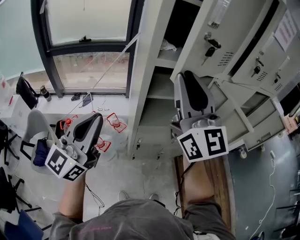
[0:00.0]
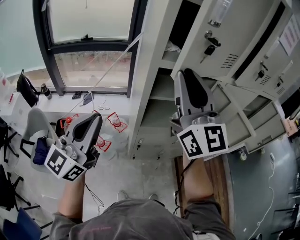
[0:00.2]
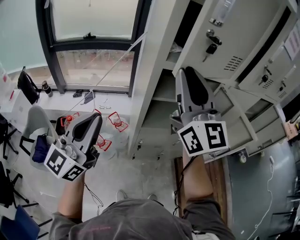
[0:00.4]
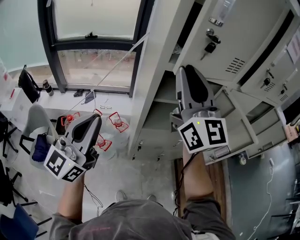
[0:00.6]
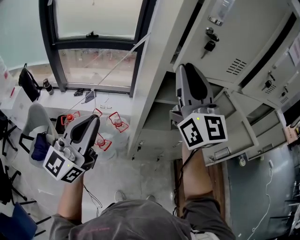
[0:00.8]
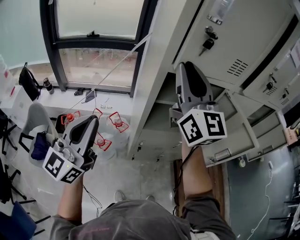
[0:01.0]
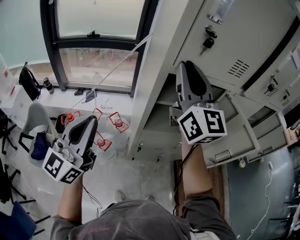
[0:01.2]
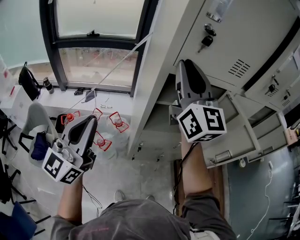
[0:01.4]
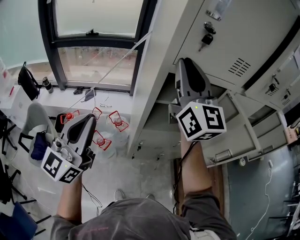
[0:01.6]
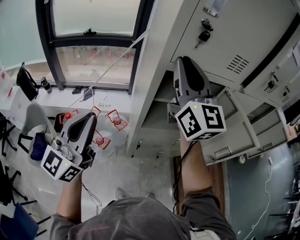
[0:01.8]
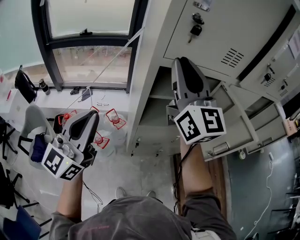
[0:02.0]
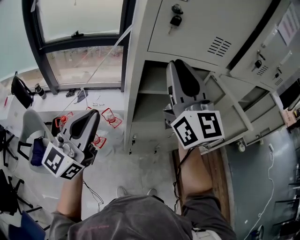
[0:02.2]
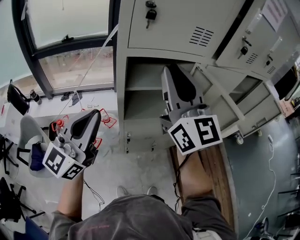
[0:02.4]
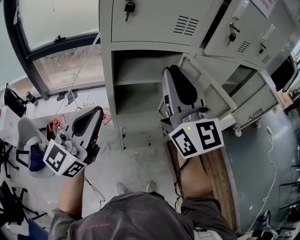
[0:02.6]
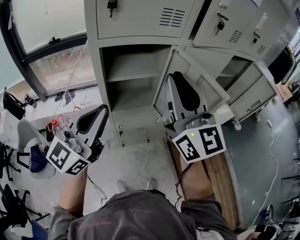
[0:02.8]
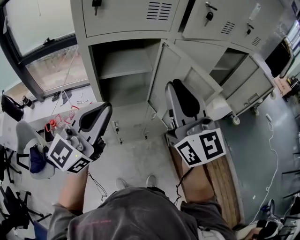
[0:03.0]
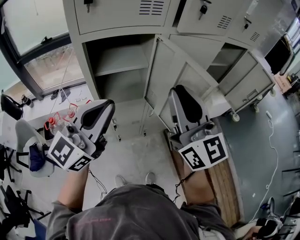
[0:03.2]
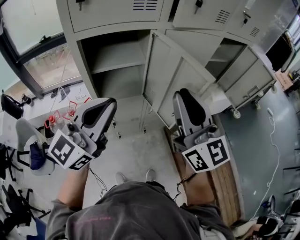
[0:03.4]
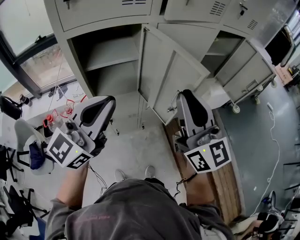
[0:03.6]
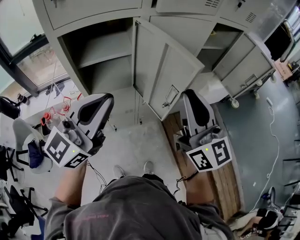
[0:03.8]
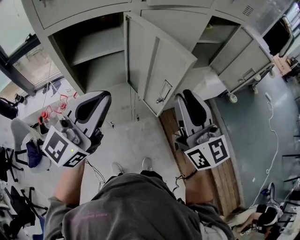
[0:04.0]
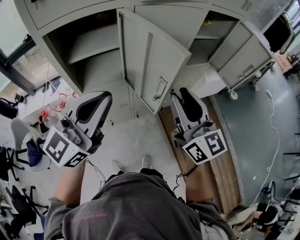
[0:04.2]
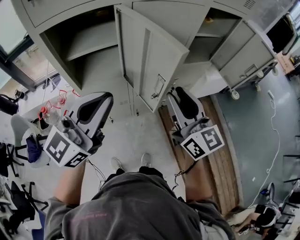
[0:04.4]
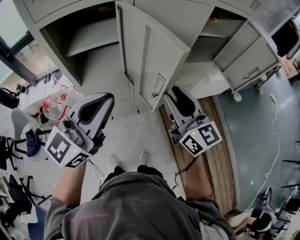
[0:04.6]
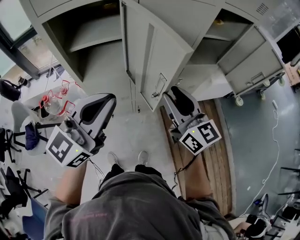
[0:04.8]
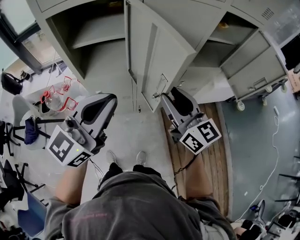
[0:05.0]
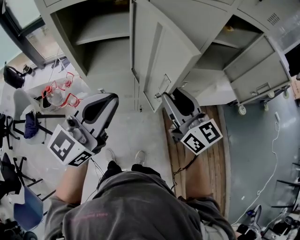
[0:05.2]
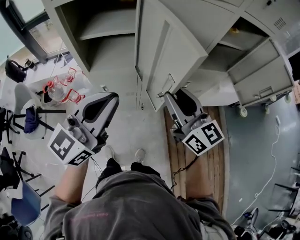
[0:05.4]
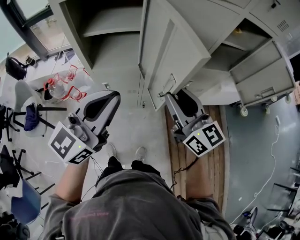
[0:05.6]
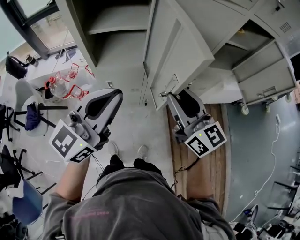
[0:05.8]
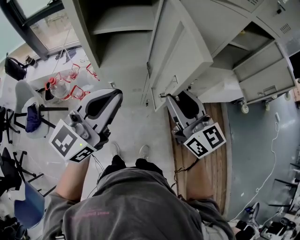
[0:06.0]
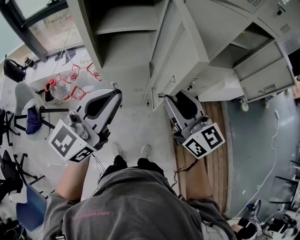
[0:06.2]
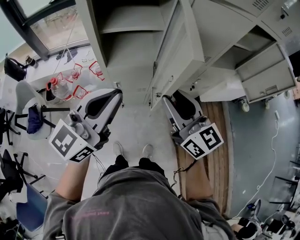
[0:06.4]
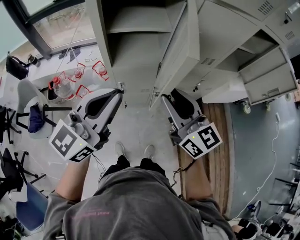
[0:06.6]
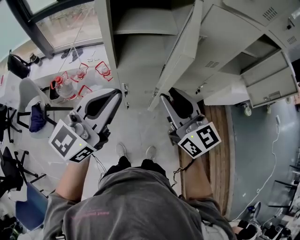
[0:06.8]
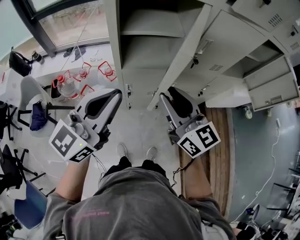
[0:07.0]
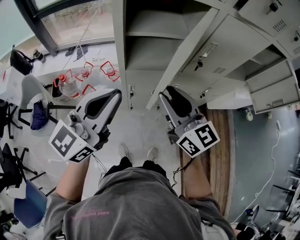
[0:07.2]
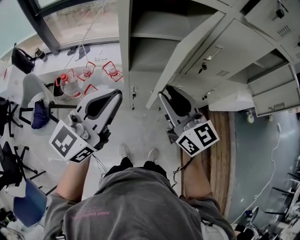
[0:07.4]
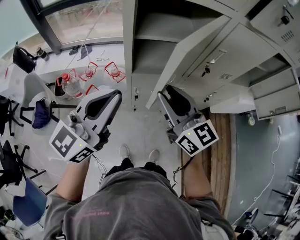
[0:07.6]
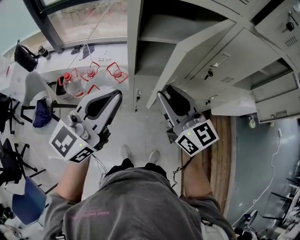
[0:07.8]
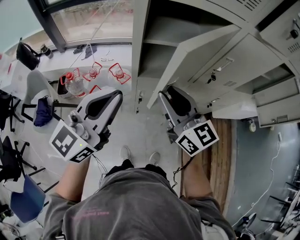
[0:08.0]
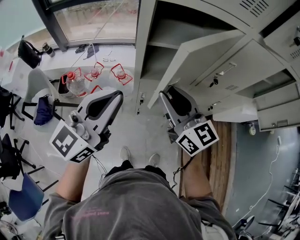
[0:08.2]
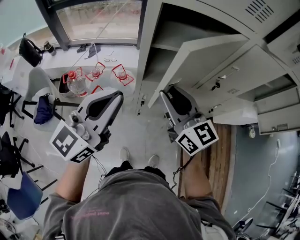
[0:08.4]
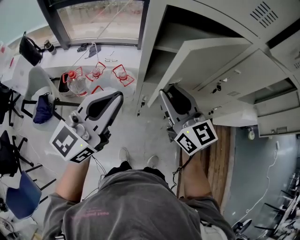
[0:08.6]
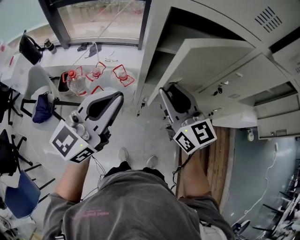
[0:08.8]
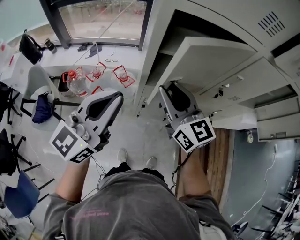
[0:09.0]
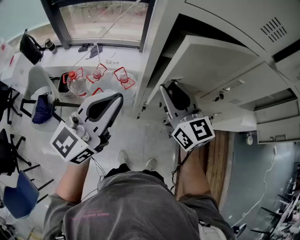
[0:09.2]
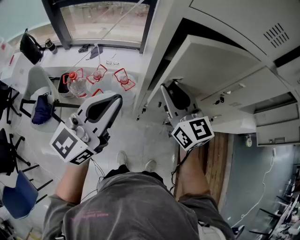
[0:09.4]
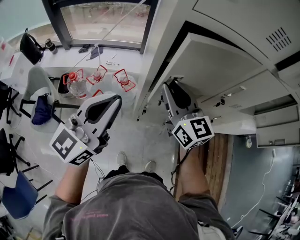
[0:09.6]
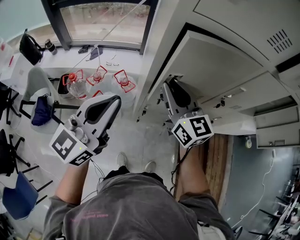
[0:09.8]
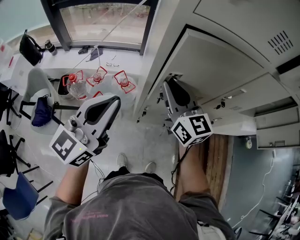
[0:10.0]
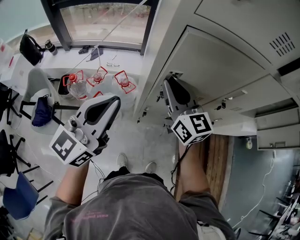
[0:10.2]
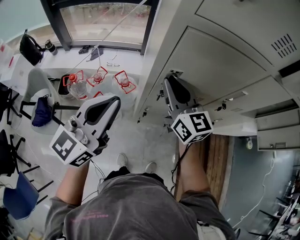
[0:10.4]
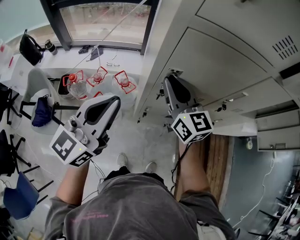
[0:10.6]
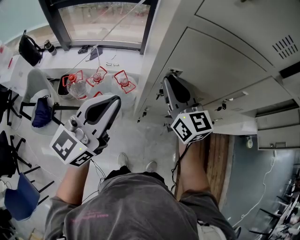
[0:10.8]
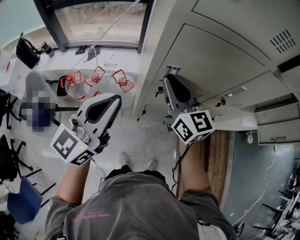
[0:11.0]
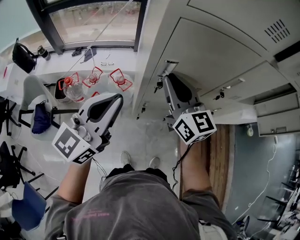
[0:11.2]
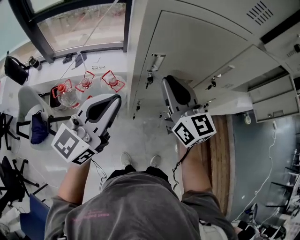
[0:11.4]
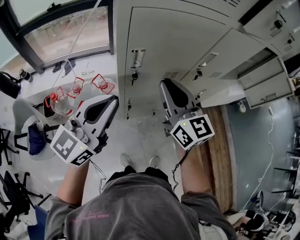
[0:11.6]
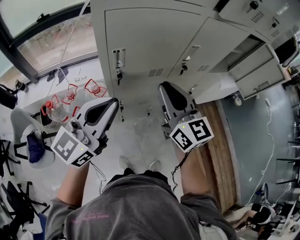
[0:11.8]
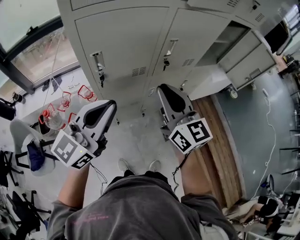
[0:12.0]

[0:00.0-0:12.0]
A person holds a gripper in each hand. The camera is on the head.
0:00.0 to 0:01.6: The right gripper shifts approximately 10 cm forward; the left gripper changes place by some 5 cm.
0:01.6 to 0:03.0: The right gripper heads to the right and backward, covering approximately 25 cm, while the left gripper travels to the right by some 25 cm, and swivels some 20 degrees.
0:03.0 to 0:04.4: The left gripper travels to the right by approximately 15 cm. Meanwhile the right gripper is displaced to the right and downward by about 20 cm.
0:04.4 to 0:06.0: Both grippers travel together to the left, roughly 5 cm.
0:06.0 to 0:07.6: The two grippers go approximately 20 cm to the left.
0:07.6 to 0:09.0: The left gripper travels to the left by roughly 5 cm. Meanwhile the right gripper travels forward and to the left by some 10 cm.
0:09.0 to 0:10.4: The right gripper moves forward, about 10 cm.
0:10.4 to 0:12.0: The left gripper is displaced to the right by some 20 cm, and swivels roughly 20 degrees; the right gripper goes approximately 25 cm to the right and backward, and changes its angle by roughly 20 degrees.

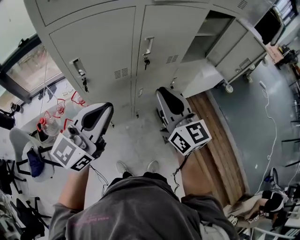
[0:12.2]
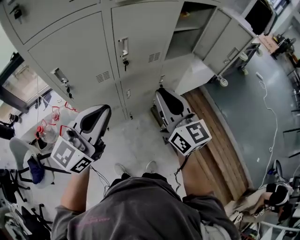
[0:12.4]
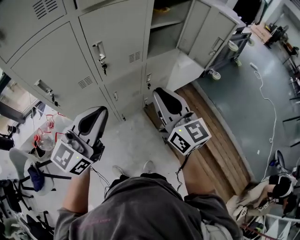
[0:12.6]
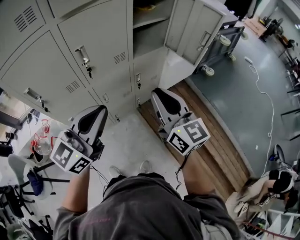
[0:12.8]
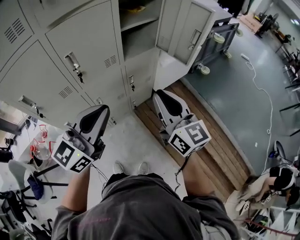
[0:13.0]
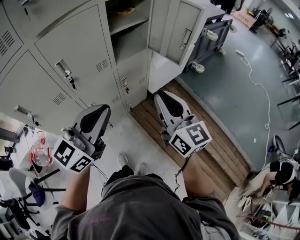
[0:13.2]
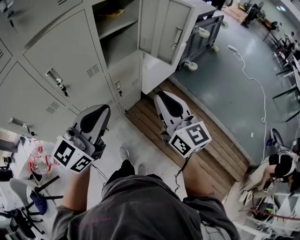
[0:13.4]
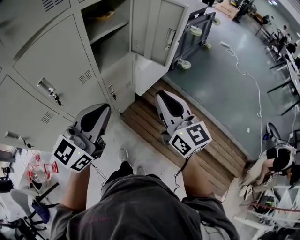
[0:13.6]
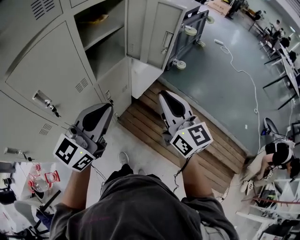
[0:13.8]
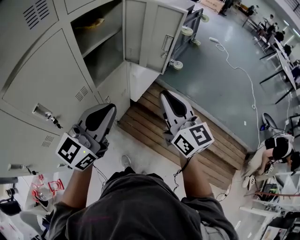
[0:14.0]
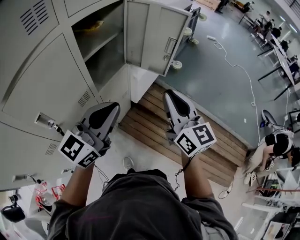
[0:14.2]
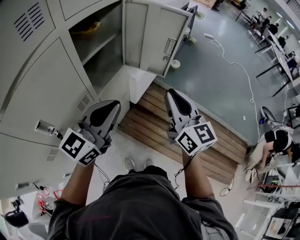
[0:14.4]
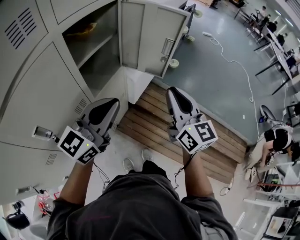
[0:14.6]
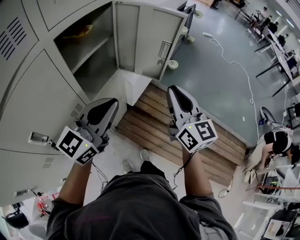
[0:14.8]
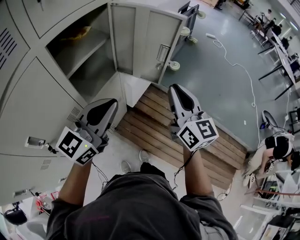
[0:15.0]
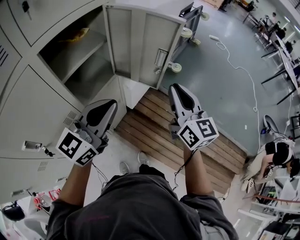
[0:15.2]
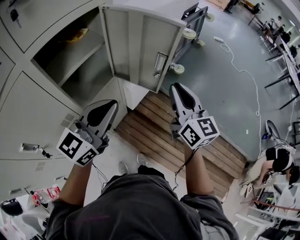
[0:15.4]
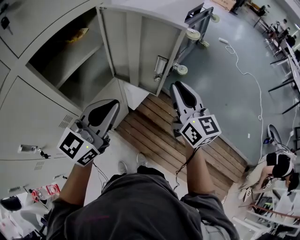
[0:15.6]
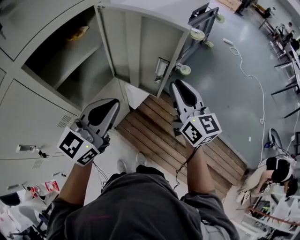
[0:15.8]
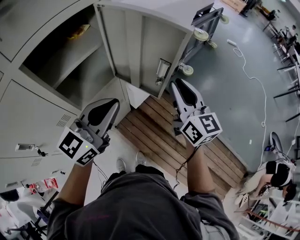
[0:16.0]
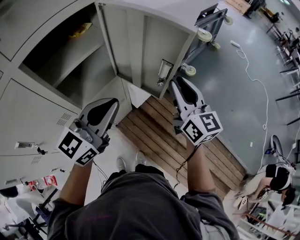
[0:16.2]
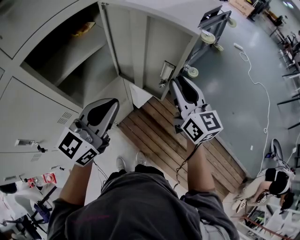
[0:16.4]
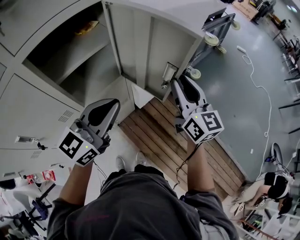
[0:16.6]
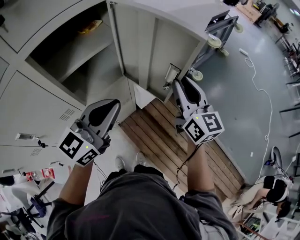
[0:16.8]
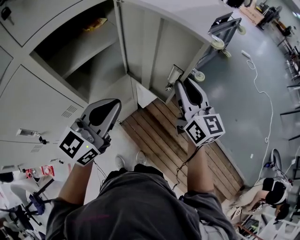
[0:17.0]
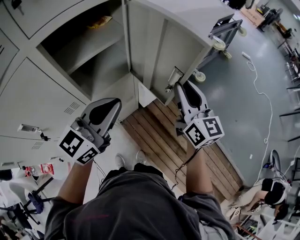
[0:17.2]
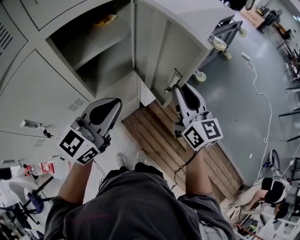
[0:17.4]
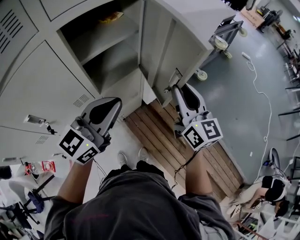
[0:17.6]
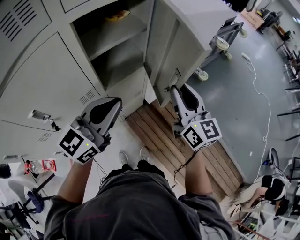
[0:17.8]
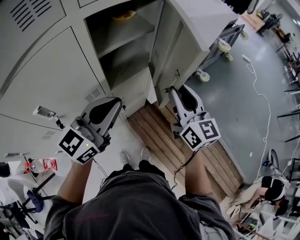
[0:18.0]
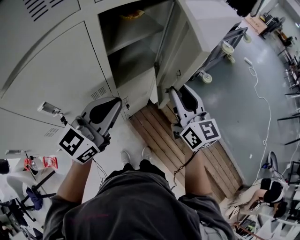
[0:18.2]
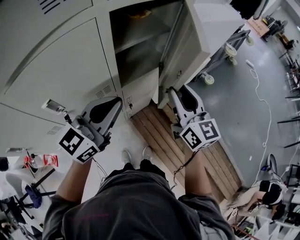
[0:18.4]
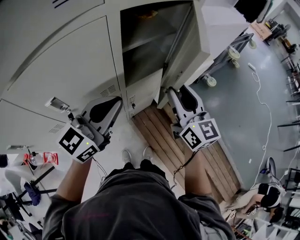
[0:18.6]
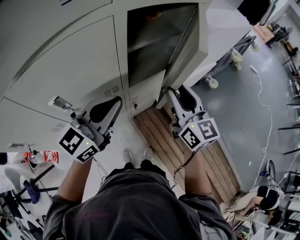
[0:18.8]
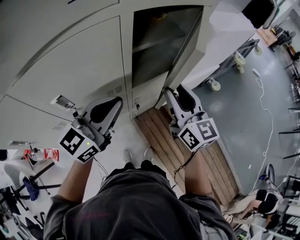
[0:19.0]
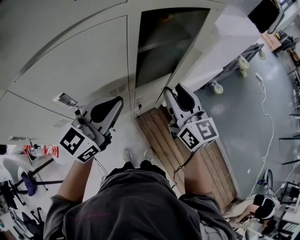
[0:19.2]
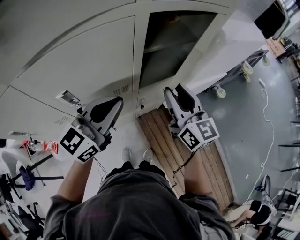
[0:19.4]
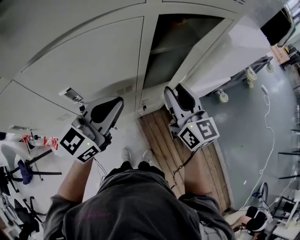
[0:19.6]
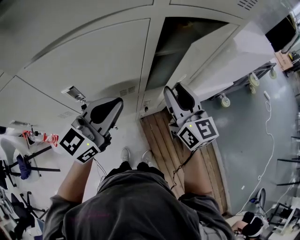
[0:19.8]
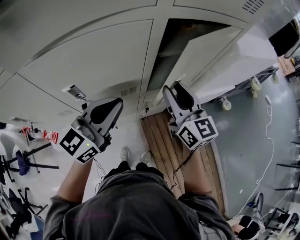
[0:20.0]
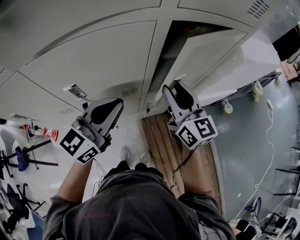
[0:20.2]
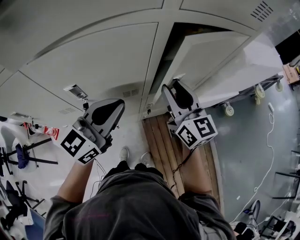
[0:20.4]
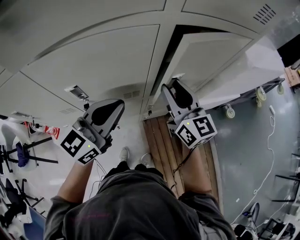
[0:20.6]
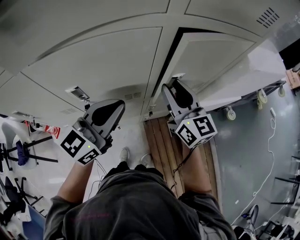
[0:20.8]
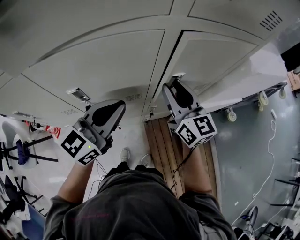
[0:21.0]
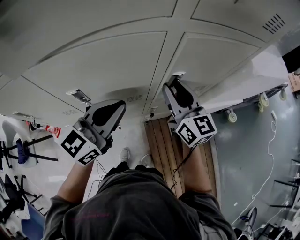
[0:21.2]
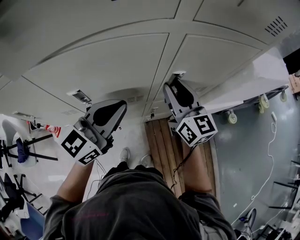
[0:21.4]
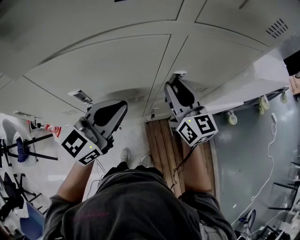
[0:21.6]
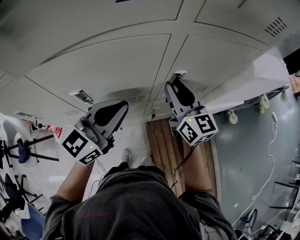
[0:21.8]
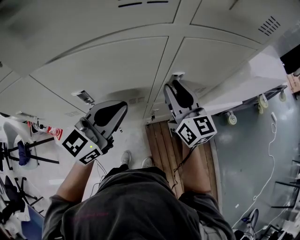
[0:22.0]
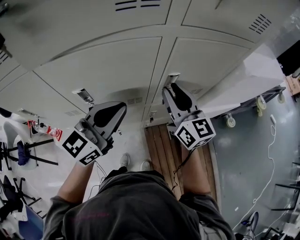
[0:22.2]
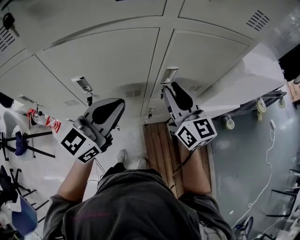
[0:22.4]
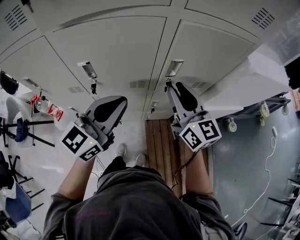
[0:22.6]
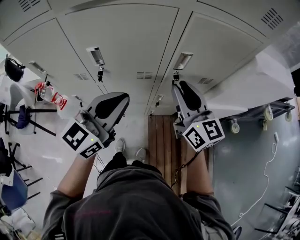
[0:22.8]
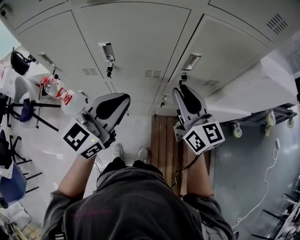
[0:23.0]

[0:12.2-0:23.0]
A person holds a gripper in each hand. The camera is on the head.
0:12.2 to 0:13.8: The right gripper moves approximately 40 cm, and changes its angle by roughly 30 degrees; the left gripper changes place by some 40 cm, and turns by some 30 degrees.
0:13.8 to 0:15.2: Both grippers travel together forward, roughly 20 cm.
0:15.2 to 0:16.8: The right gripper heads forward, covering roughly 15 cm. Meanwhile the left gripper goes approximately 5 cm forward.
0:16.8 to 0:18.4: The grippers both shift to the left and backward by about 20 cm.
0:18.4 to 0:20.0: The right gripper travels to the left and forward by about 15 cm, and swivels some 20 degrees, while the left gripper shifts about 10 cm to the left.
0:20.0 to 0:21.4: The right gripper goes roughly 5 cm forward.
0:21.4 to 0:23.0: Both grippers move backward, roughly 10 cm.

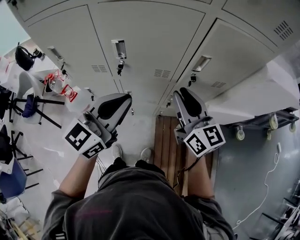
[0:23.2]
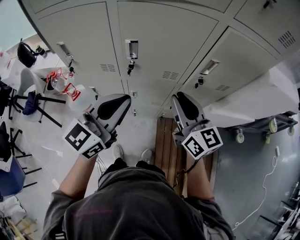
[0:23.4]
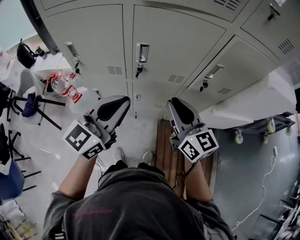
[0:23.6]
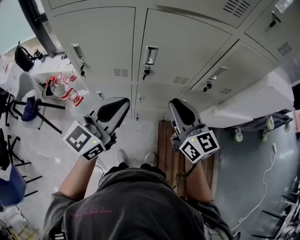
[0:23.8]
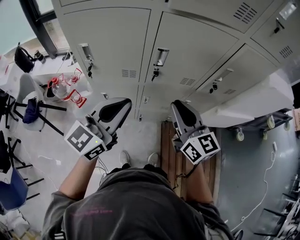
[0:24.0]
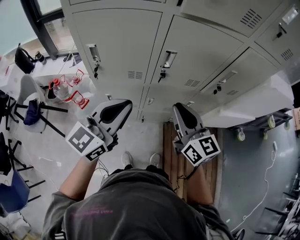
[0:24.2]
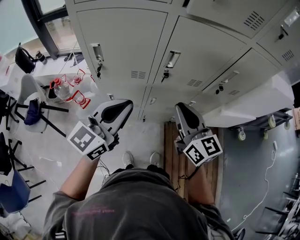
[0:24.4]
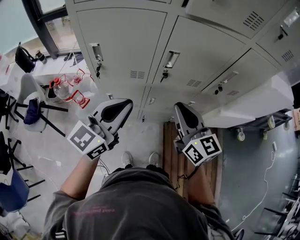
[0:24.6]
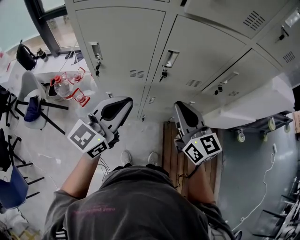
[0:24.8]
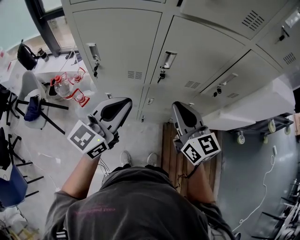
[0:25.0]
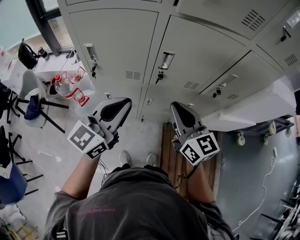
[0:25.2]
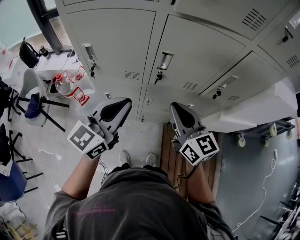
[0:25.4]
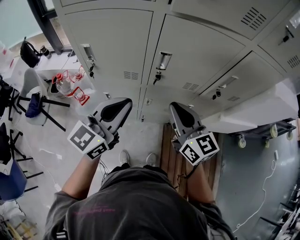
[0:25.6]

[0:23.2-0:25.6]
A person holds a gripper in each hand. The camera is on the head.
0:23.2 to 0:24.4: Both grippers travel together to the left, about 20 cm.
0:24.4 to 0:25.6: The left gripper changes place by some 5 cm.
